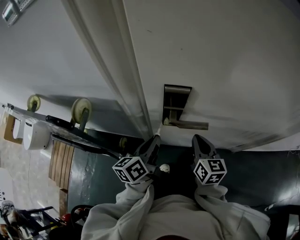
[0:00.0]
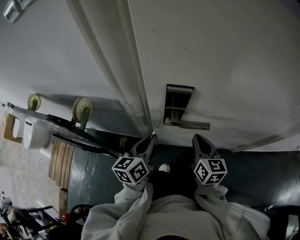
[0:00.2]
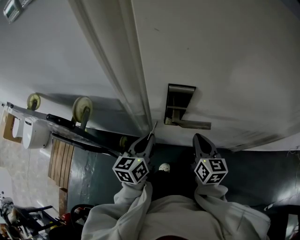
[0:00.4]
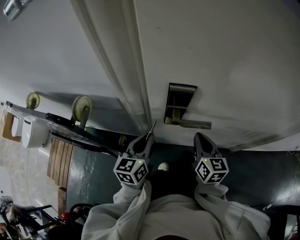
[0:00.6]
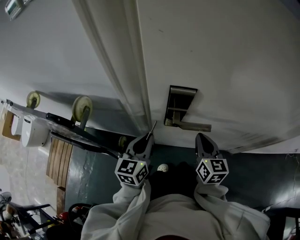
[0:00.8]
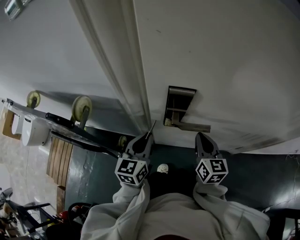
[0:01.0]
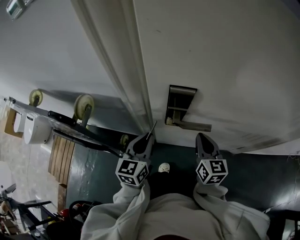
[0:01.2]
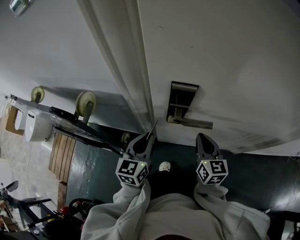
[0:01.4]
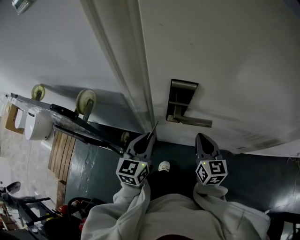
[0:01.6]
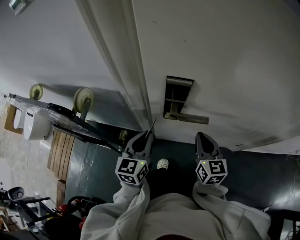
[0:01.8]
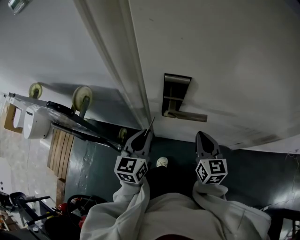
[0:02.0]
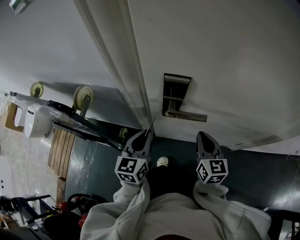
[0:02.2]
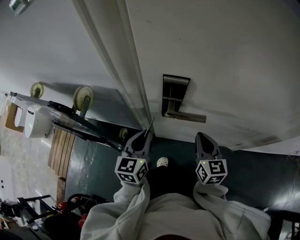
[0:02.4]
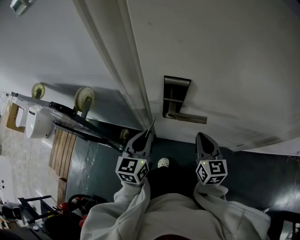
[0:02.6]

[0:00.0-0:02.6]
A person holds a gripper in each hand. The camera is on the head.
0:00.0 to 0:01.2: The left gripper swivels approximately 40 degrees.
0:01.2 to 0:02.6: The grippers make only small movements.

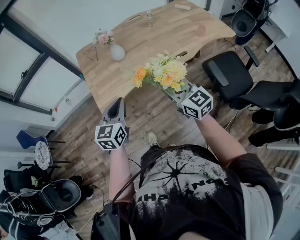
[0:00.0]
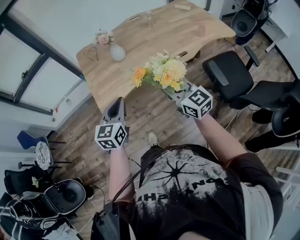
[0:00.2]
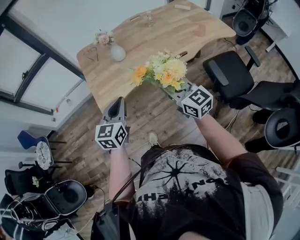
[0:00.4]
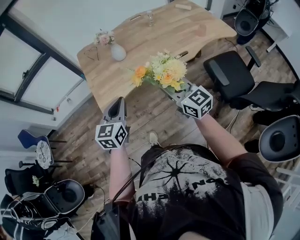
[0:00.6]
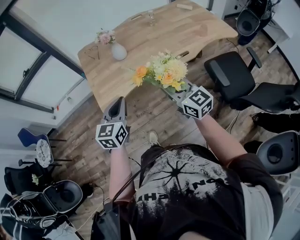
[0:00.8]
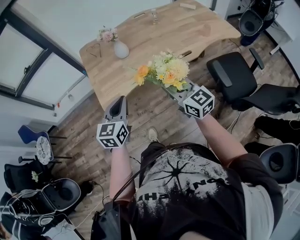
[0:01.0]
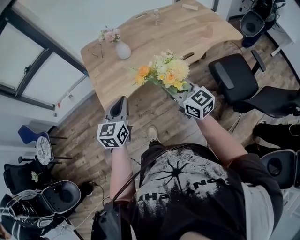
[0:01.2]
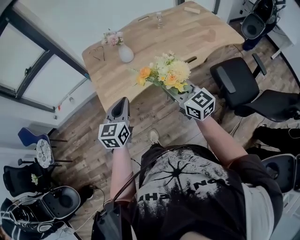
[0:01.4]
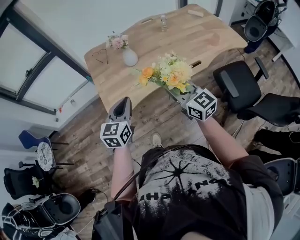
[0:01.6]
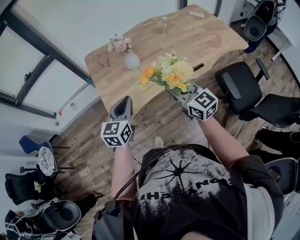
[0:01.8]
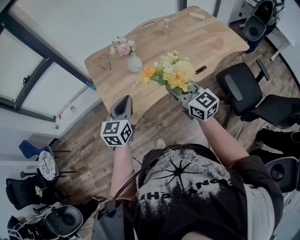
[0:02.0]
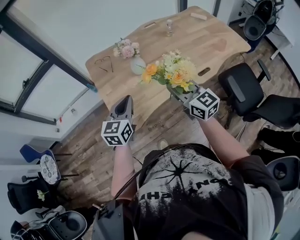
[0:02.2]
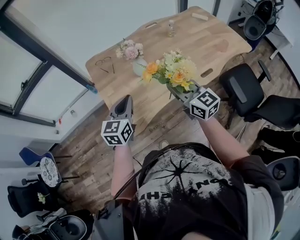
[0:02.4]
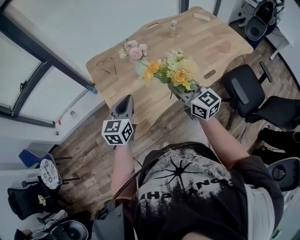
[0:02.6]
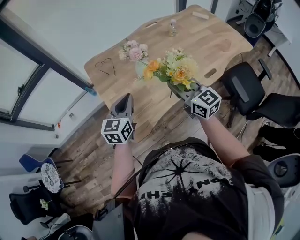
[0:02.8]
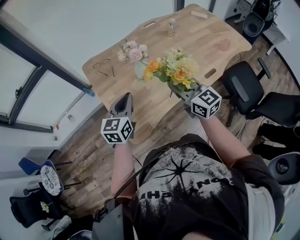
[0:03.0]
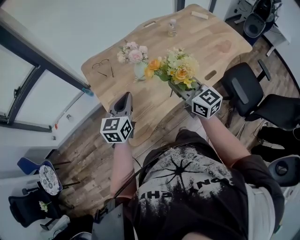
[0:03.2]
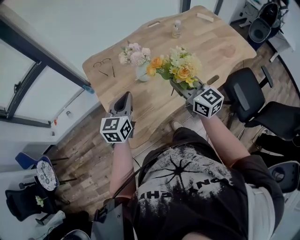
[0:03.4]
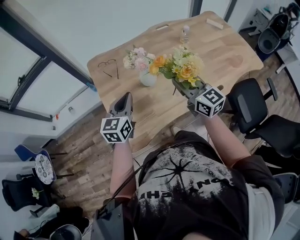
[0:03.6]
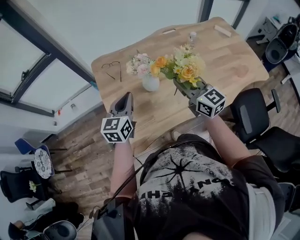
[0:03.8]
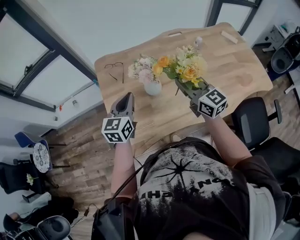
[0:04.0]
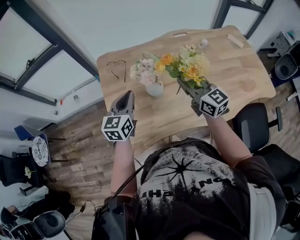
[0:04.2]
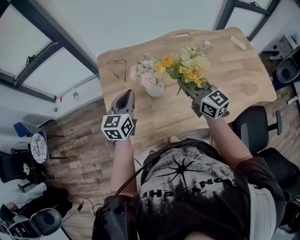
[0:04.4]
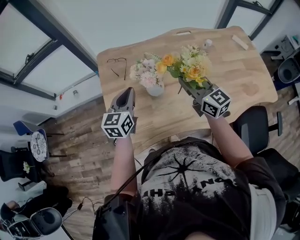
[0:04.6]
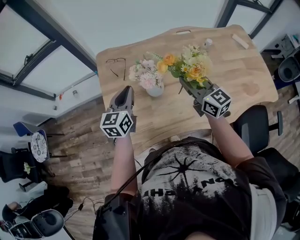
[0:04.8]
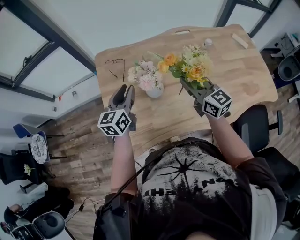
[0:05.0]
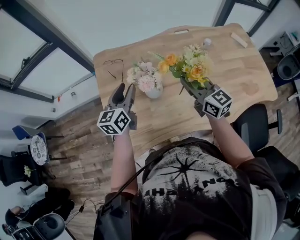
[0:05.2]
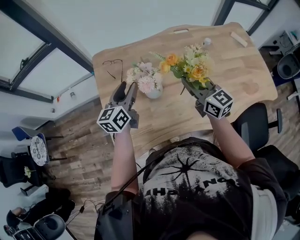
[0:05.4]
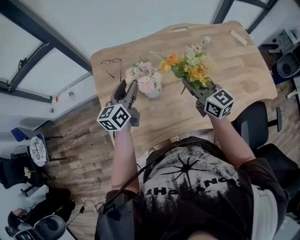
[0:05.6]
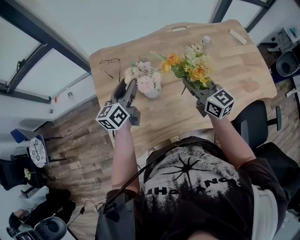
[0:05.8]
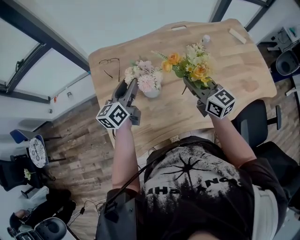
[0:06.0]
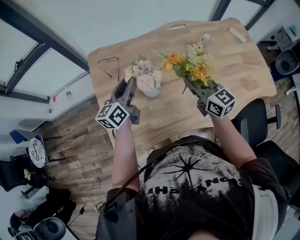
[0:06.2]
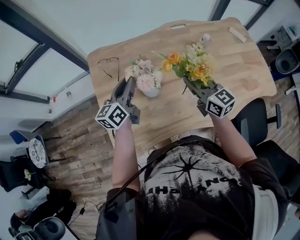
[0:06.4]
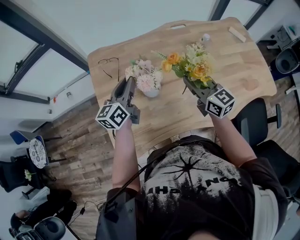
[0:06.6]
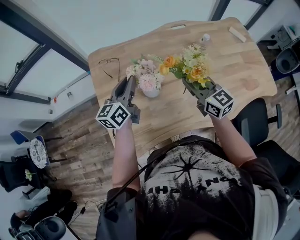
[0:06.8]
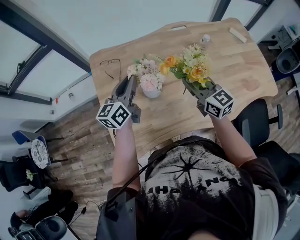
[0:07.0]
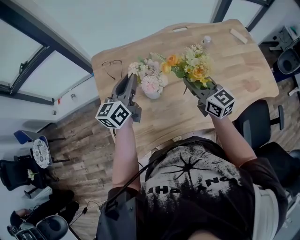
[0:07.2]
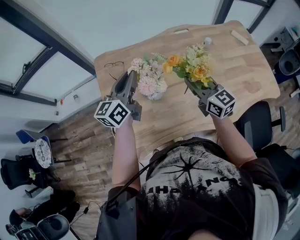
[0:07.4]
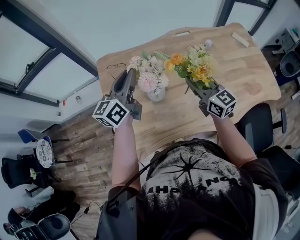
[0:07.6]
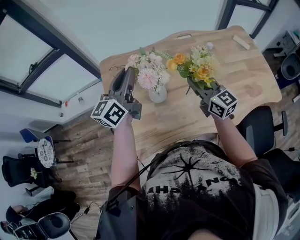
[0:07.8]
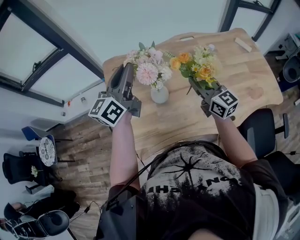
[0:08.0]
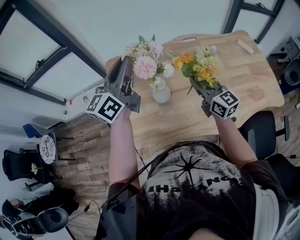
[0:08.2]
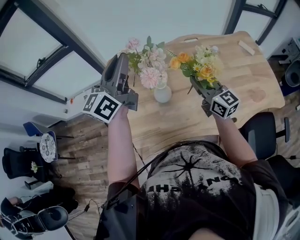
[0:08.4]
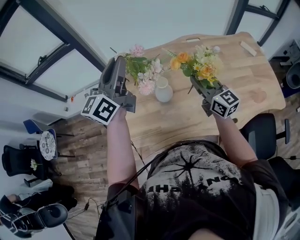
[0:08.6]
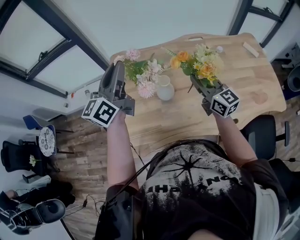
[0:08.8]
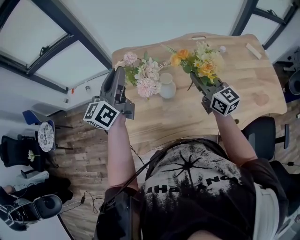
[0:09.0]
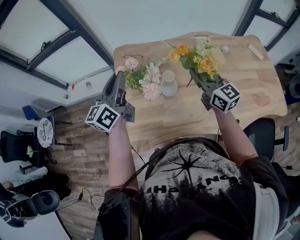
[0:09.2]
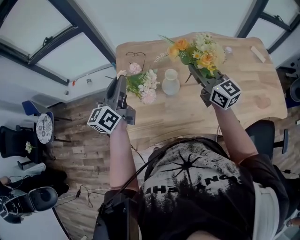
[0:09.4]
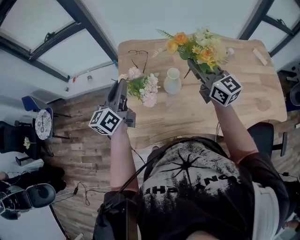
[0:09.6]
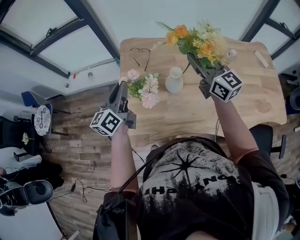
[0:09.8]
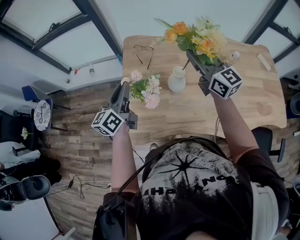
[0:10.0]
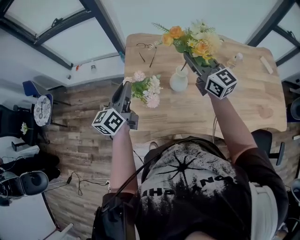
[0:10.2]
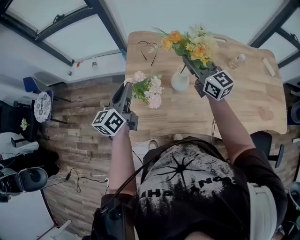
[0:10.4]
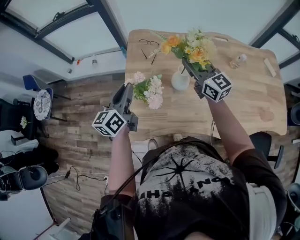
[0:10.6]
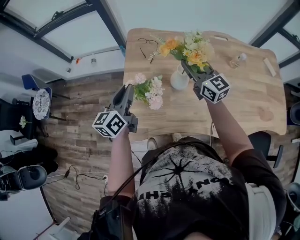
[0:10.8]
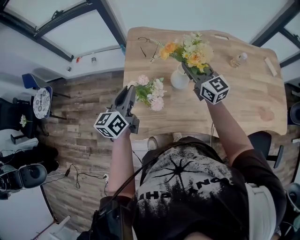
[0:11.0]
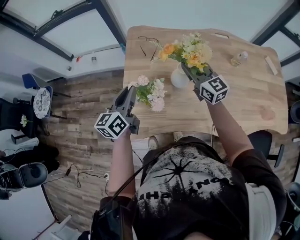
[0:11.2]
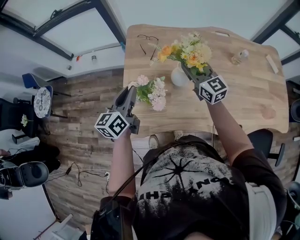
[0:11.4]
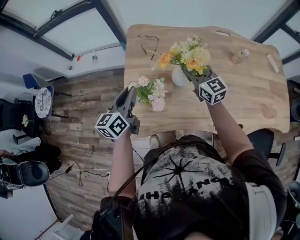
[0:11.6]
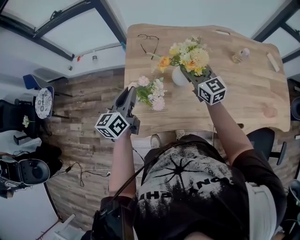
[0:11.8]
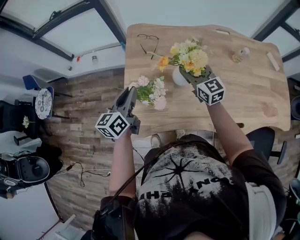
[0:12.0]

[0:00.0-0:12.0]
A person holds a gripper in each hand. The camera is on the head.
0:00.0 to 0:01.6: The grippers both shift forward by some 10 cm.
0:01.6 to 0:03.0: The grippers both shift forward and to the left by about 20 cm.
0:03.0 to 0:04.4: The grippers both shift forward by about 15 cm.
0:04.4 to 0:06.0: The right gripper moves roughly 5 cm. Meanwhile the left gripper is displaced forward by about 10 cm, swivels about 30 degrees, and opens up.
0:06.0 to 0:07.6: The left gripper goes some 10 cm upward, and closes up.
0:07.6 to 0:09.0: The left gripper heads to the left and upward, covering approximately 10 cm.
0:09.0 to 0:10.4: The left gripper moves downward, to the left and backward, some 15 cm. Meanwhile the right gripper is displaced to the left and forward by some 15 cm.
0:10.4 to 0:12.0: The right gripper travels downward by approximately 10 cm, and opens.

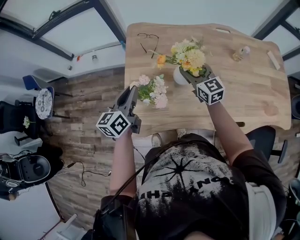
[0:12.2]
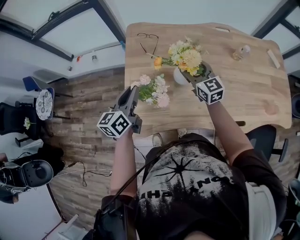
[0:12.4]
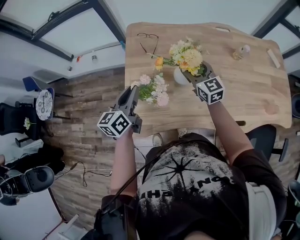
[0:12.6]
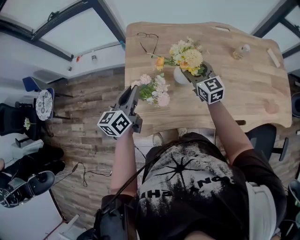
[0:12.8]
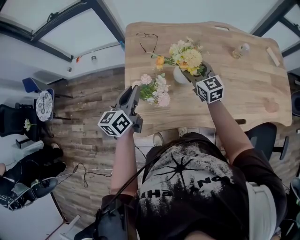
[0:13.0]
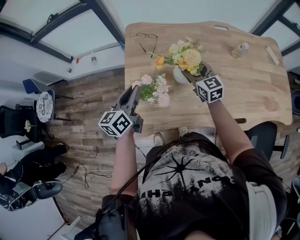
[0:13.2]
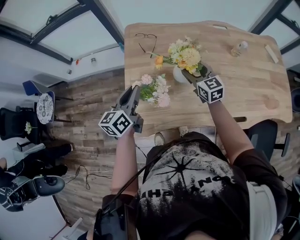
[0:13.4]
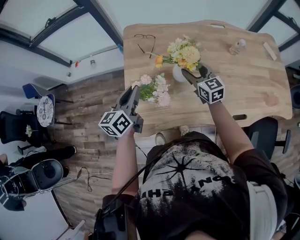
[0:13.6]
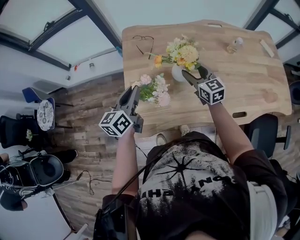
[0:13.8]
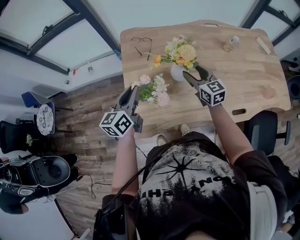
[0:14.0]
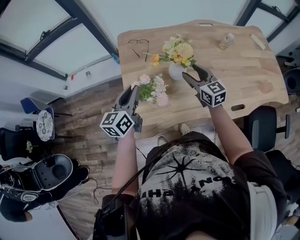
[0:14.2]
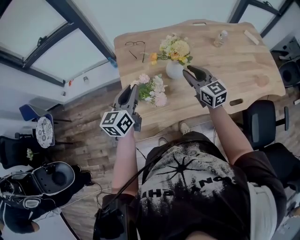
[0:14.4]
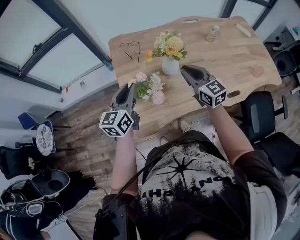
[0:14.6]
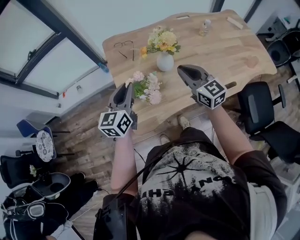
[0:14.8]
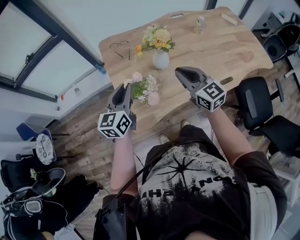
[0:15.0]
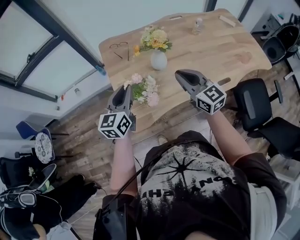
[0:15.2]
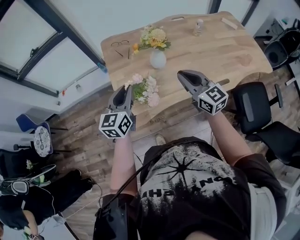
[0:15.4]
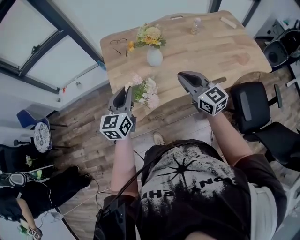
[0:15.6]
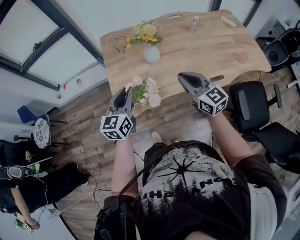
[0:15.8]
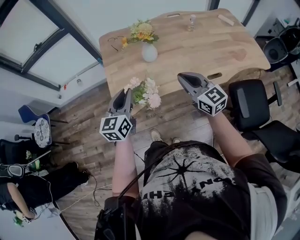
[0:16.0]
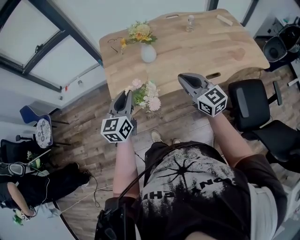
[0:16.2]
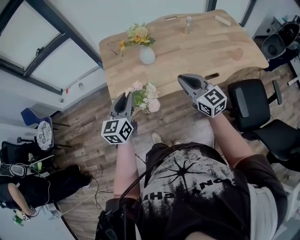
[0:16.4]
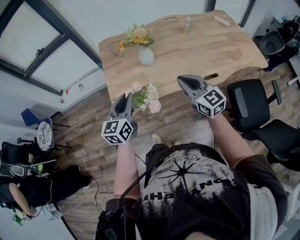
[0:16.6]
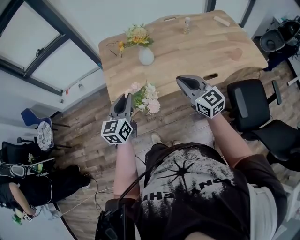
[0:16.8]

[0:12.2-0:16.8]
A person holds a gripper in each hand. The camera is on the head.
0:12.2 to 0:13.8: The grippers move only a little.
0:13.8 to 0:15.2: The left gripper is displaced backward by about 10 cm, and rotates about 20 degrees. The right gripper shifts roughly 20 cm backward and upward, and closes up.
0:15.2 to 0:16.8: Both grippers move backward and to the right, some 15 cm.

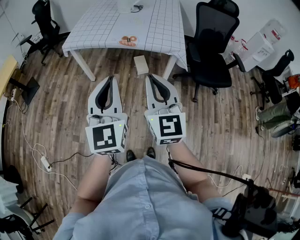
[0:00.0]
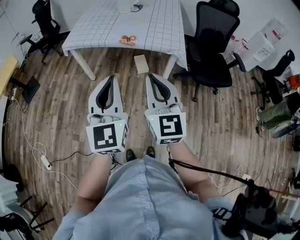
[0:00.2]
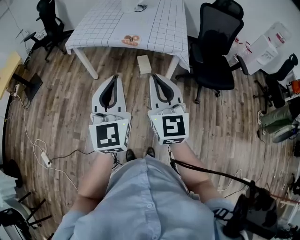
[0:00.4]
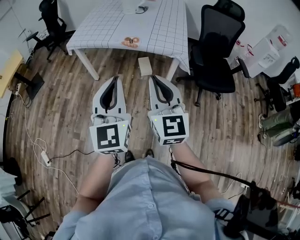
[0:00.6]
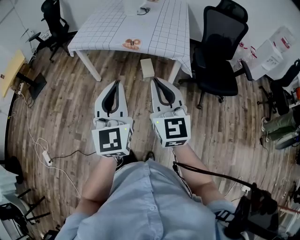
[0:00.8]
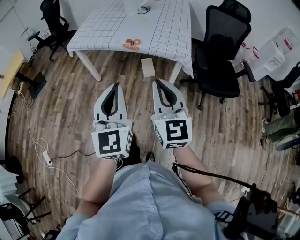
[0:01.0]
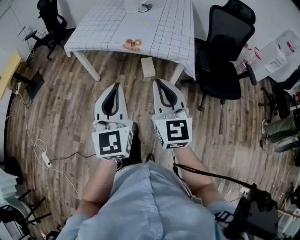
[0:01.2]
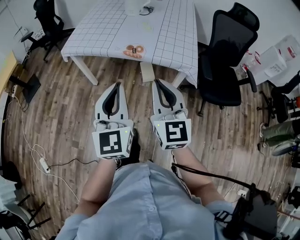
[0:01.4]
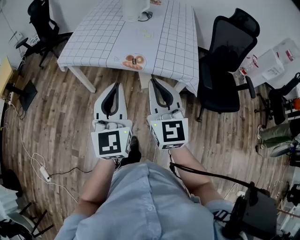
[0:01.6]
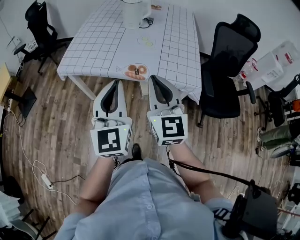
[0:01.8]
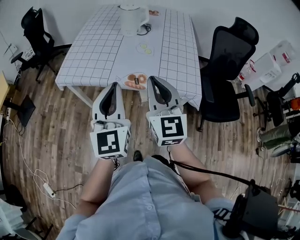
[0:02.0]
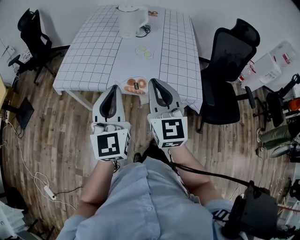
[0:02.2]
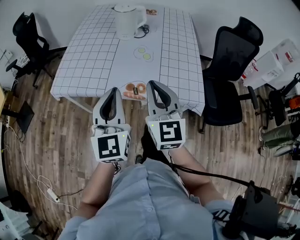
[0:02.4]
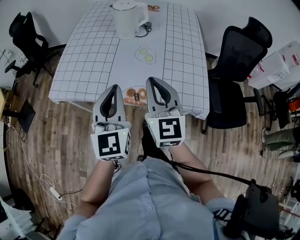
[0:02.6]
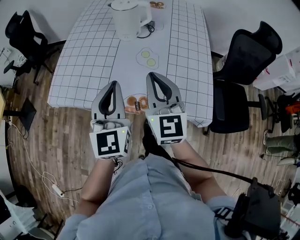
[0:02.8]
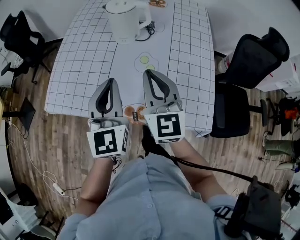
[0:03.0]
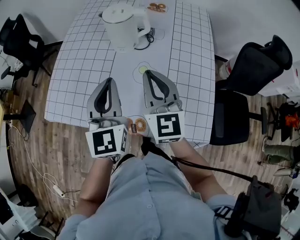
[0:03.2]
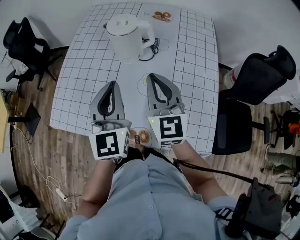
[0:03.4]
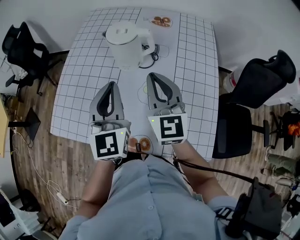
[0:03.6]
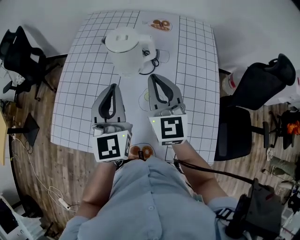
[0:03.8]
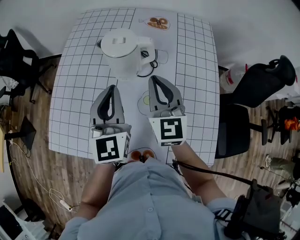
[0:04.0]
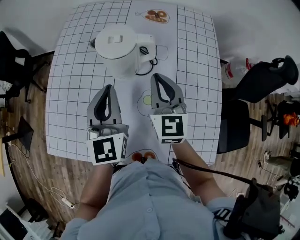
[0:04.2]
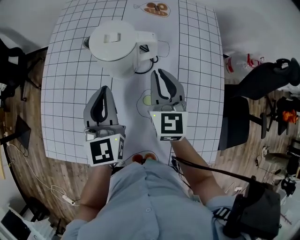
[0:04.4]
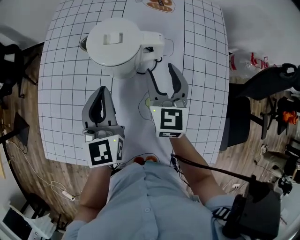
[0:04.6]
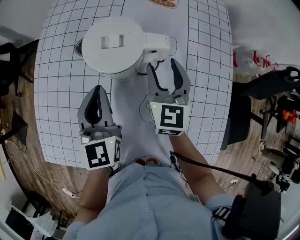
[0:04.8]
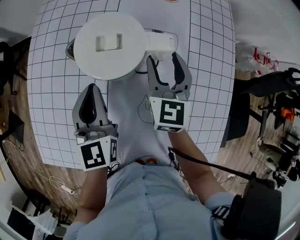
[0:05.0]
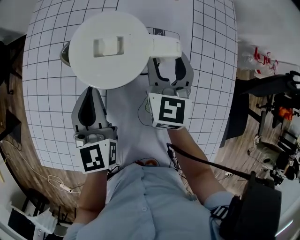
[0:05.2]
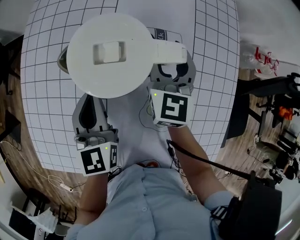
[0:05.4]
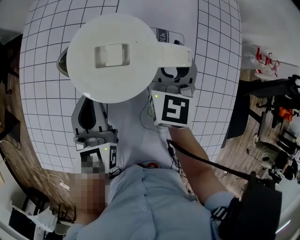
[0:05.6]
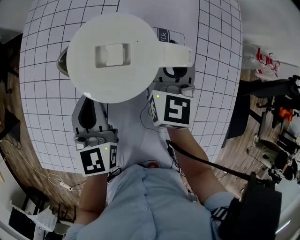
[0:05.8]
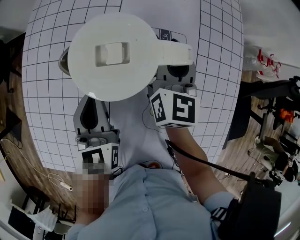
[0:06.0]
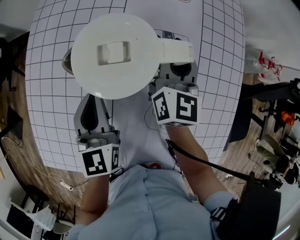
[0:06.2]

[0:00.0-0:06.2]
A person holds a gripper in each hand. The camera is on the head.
0:00.0 to 0:01.6: The grippers both shift forward by about 20 cm.
0:01.6 to 0:03.2: Both grippers travel together forward, roughly 30 cm.
0:03.2 to 0:04.6: The left gripper heads forward, downward and to the left, covering approximately 15 cm; the right gripper travels forward and downward by approximately 15 cm, and opens up.
0:04.6 to 0:06.2: The right gripper is displaced forward by roughly 10 cm, and closes its fingers, while the left gripper moves about 5 cm.
